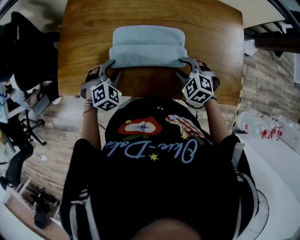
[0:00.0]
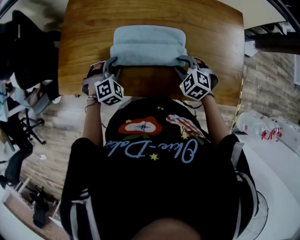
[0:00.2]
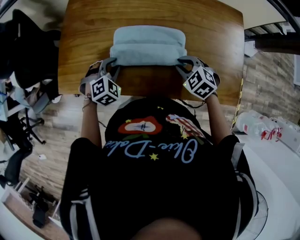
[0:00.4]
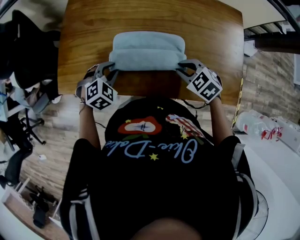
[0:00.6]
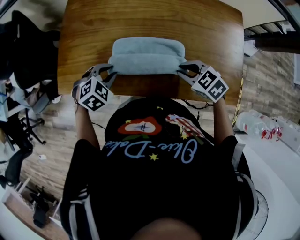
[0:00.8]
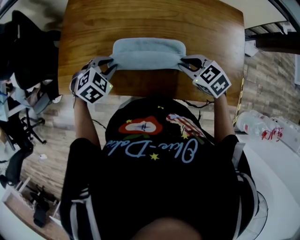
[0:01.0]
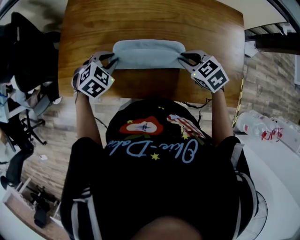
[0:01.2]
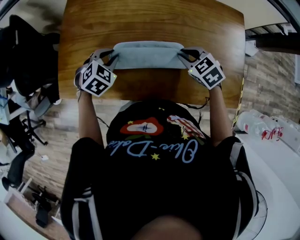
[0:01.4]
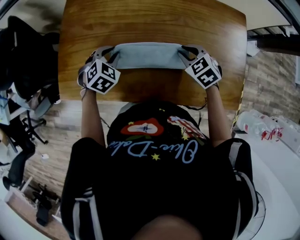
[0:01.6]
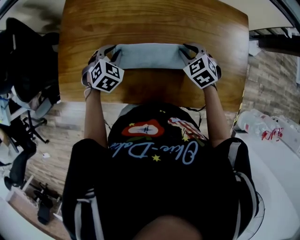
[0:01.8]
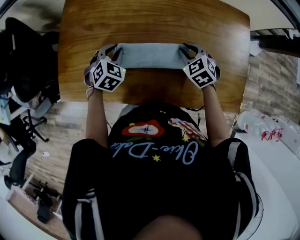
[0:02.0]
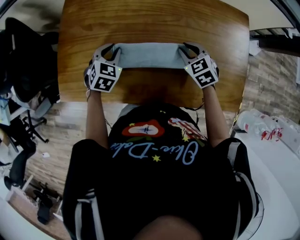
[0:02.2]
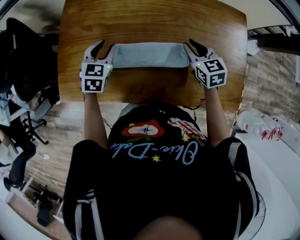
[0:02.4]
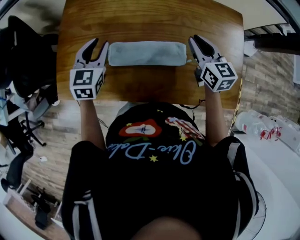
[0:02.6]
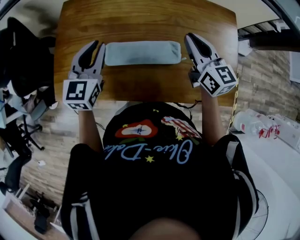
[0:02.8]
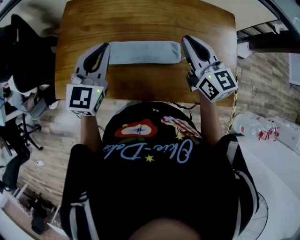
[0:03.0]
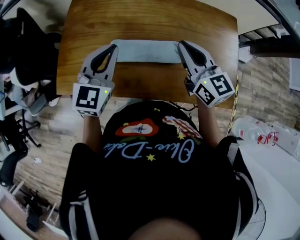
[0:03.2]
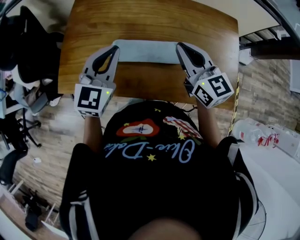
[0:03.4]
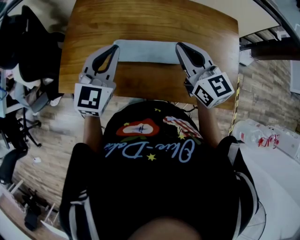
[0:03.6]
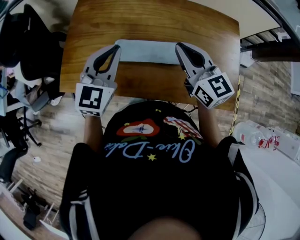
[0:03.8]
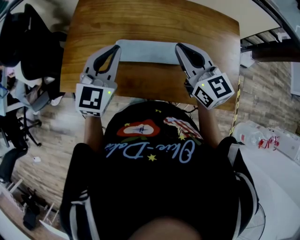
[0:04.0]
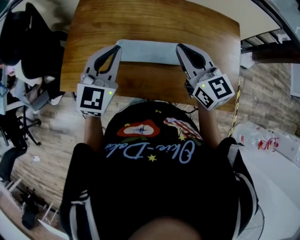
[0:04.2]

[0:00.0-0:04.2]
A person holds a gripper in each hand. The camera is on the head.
0.0 to 1.4 s: The grippers both shift forward by roughly 5 cm. The right gripper turns by about 20 degrees, and closes.
1.4 to 2.8 s: Both grippers travel together upward, roughly 15 cm. The right gripper points its fingers about 40 degrees further upward. The left gripper tips its fingers upward by about 40 degrees.
2.8 to 4.2 s: The right gripper is displaced to the left and backward by about 10 cm. The left gripper travels backward by approximately 5 cm.

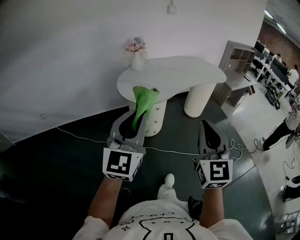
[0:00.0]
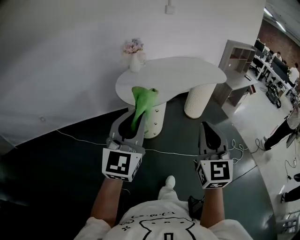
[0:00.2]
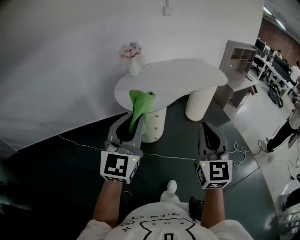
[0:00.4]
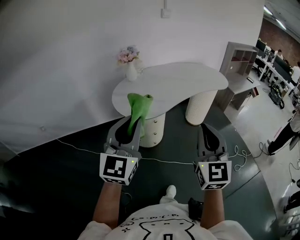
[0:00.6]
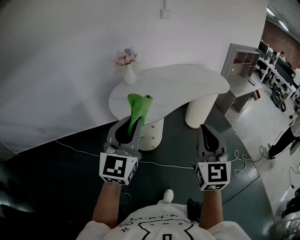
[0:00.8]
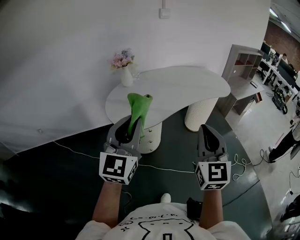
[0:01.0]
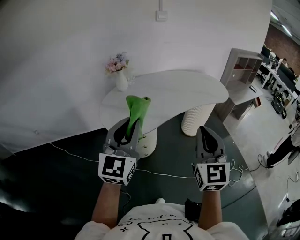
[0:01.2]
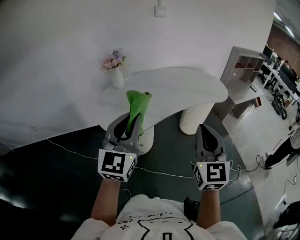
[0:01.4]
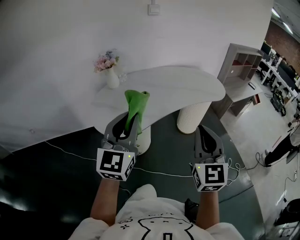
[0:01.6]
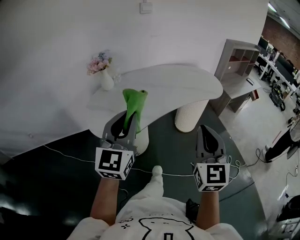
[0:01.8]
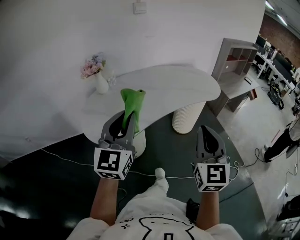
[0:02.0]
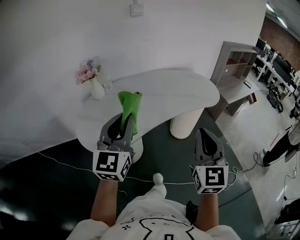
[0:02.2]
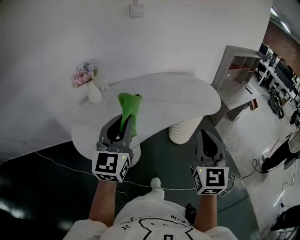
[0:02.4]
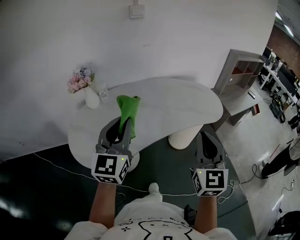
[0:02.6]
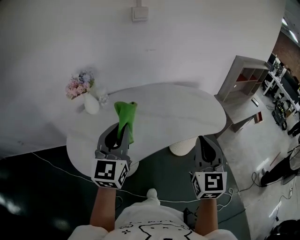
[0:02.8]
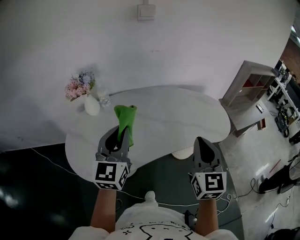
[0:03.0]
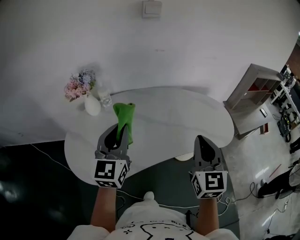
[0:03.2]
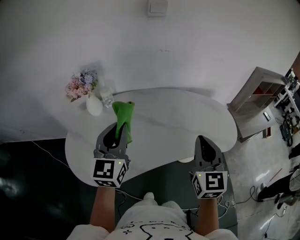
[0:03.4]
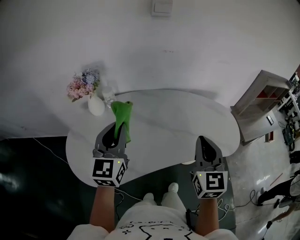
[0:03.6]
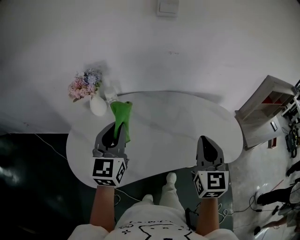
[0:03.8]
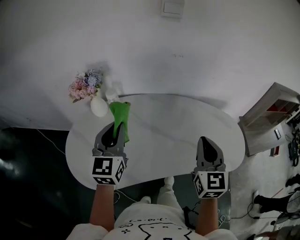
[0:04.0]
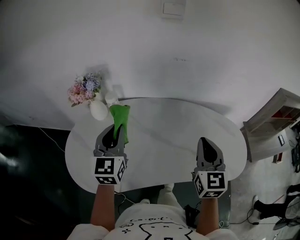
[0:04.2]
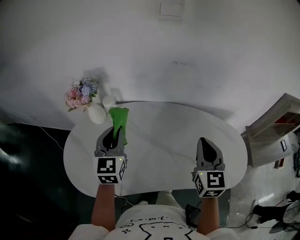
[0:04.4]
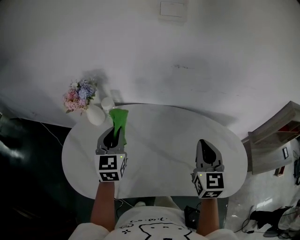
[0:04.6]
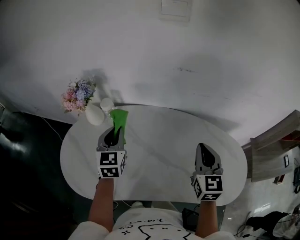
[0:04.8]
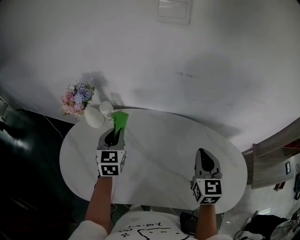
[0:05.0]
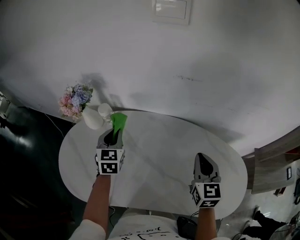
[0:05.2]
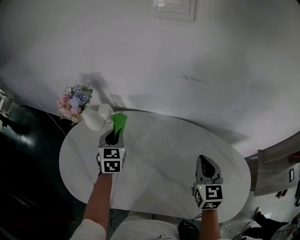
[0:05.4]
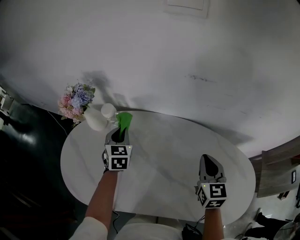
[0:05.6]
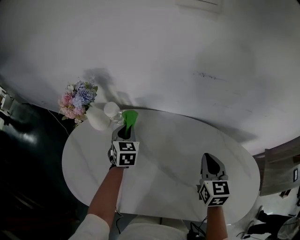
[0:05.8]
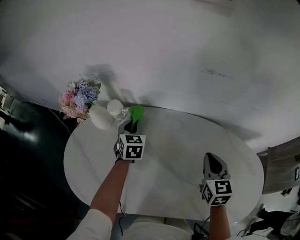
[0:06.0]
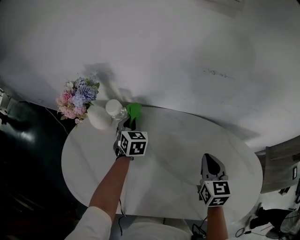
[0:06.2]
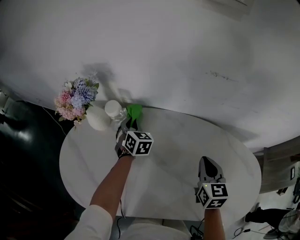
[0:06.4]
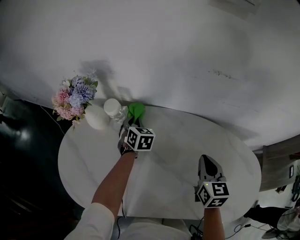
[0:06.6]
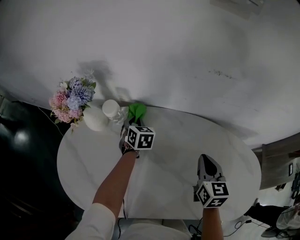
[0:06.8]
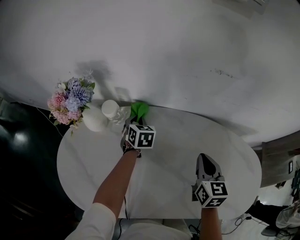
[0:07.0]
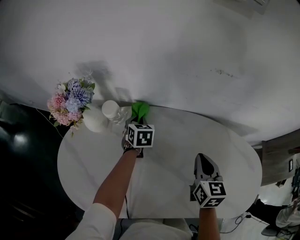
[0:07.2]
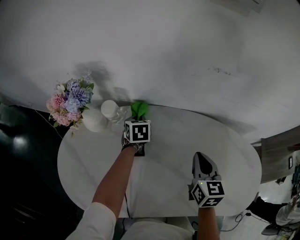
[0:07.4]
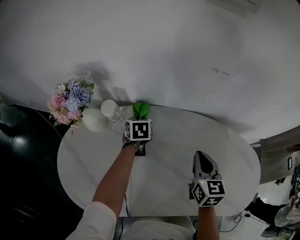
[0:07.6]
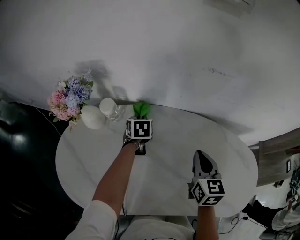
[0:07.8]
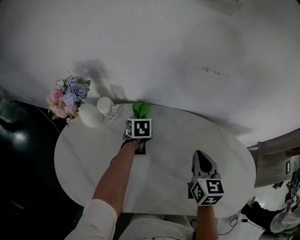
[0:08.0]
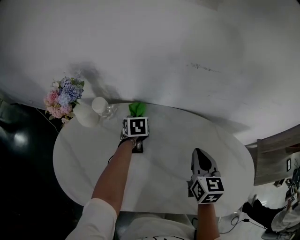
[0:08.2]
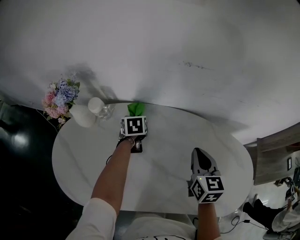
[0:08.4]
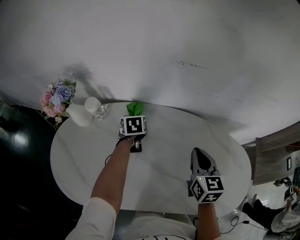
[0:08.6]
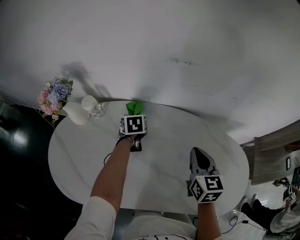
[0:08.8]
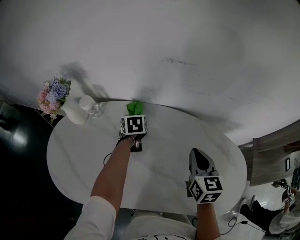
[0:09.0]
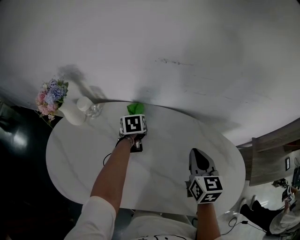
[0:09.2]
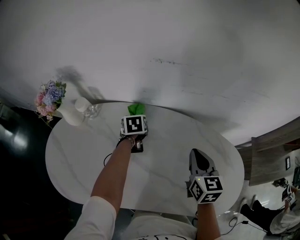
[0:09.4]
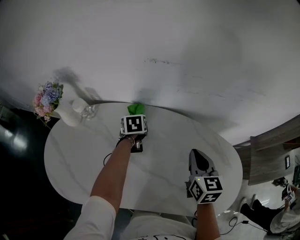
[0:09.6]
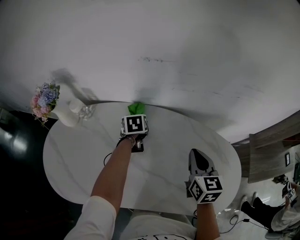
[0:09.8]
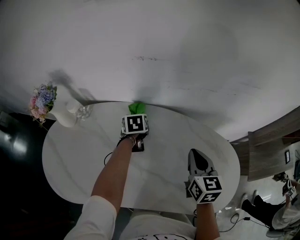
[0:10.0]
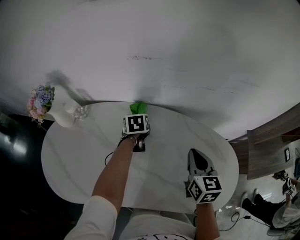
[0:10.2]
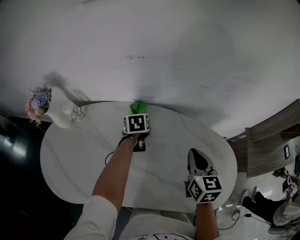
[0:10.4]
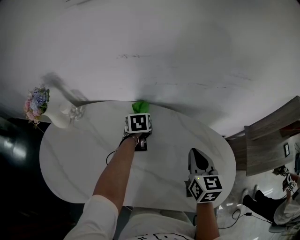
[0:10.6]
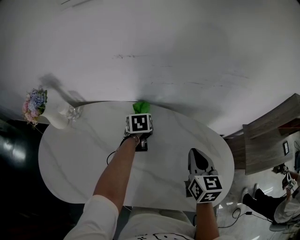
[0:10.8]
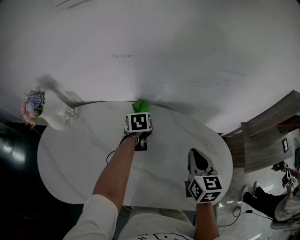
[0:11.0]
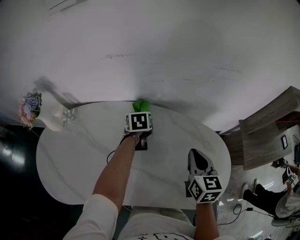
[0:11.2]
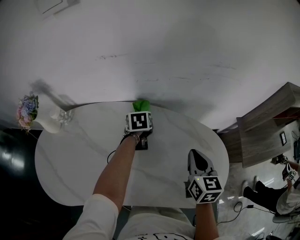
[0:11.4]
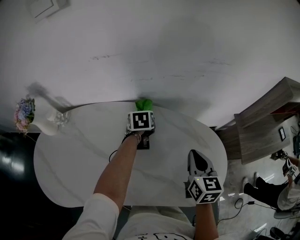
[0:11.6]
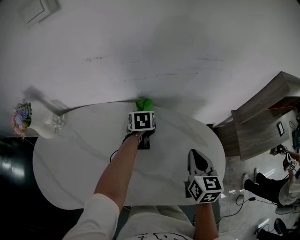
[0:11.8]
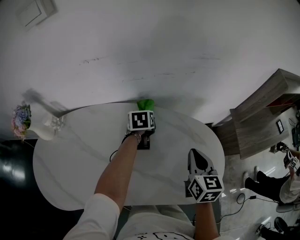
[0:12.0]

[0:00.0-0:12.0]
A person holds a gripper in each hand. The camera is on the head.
0.0 to 1.6 s: Both grippers travel together forward and to the right, approximately 35 cm.
1.6 to 3.0 s: Both grippers travel together forward, approximately 30 cm.
3.0 to 4.4 s: The two grippers go about 25 cm forward. The left gripper changes its angle by roughly 30 degrees.
4.4 to 6.0 s: The right gripper is displaced downward and forward by approximately 20 cm, and changes its angle by roughly 20 degrees. The left gripper shifts about 30 cm forward and downward, and changes its angle by approximately 30 degrees.
6.0 to 7.6 s: The left gripper shifts about 5 cm downward, and changes its angle by approximately 20 degrees.
7.6 to 9.0 s: Both grippers travel together to the right, some 10 cm.
9.0 to 10.4 s: The grippers both shift to the right by some 10 cm.
10.4 to 12.0 s: The left gripper is displaced to the right by some 15 cm. Meanwhile the right gripper is displaced to the right and backward by approximately 10 cm.

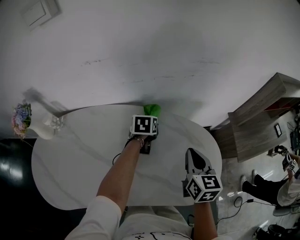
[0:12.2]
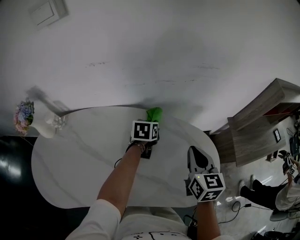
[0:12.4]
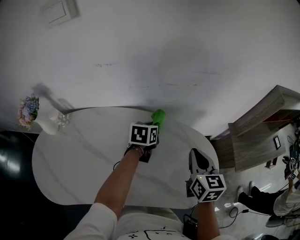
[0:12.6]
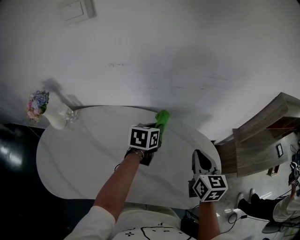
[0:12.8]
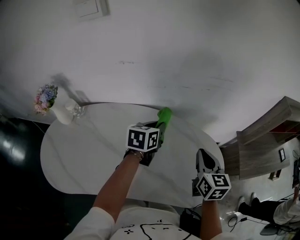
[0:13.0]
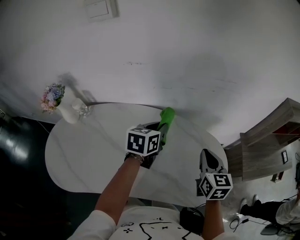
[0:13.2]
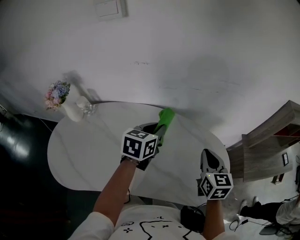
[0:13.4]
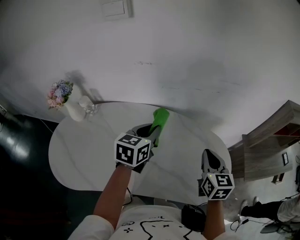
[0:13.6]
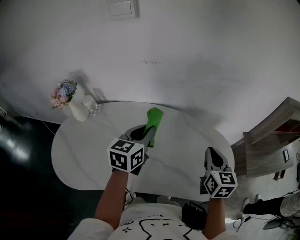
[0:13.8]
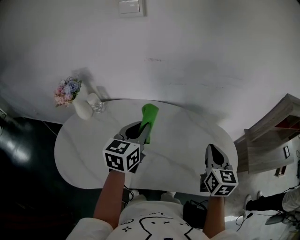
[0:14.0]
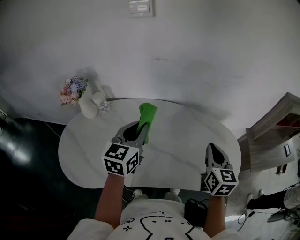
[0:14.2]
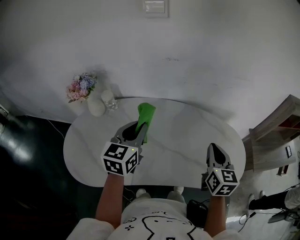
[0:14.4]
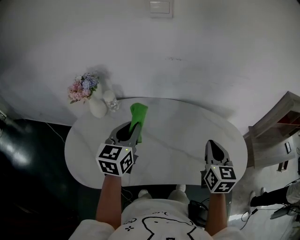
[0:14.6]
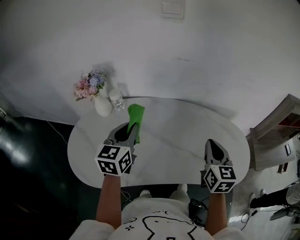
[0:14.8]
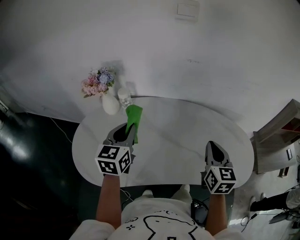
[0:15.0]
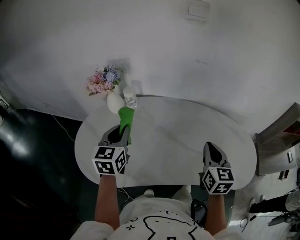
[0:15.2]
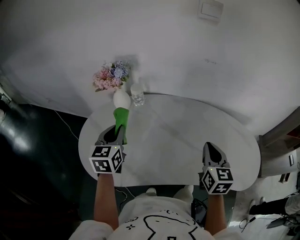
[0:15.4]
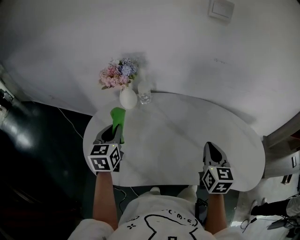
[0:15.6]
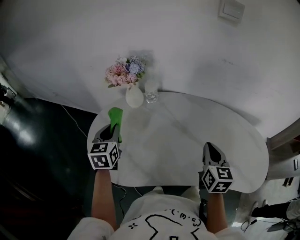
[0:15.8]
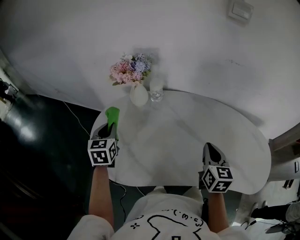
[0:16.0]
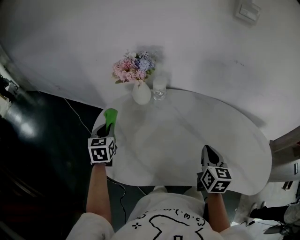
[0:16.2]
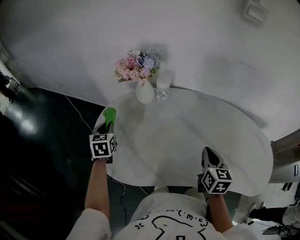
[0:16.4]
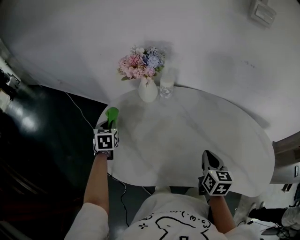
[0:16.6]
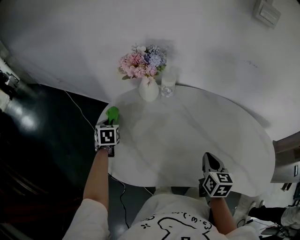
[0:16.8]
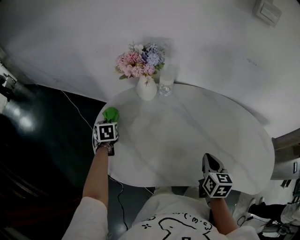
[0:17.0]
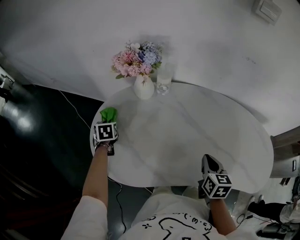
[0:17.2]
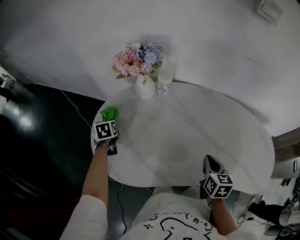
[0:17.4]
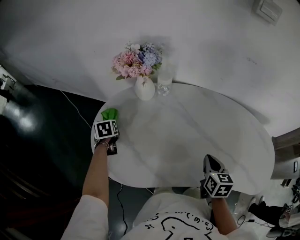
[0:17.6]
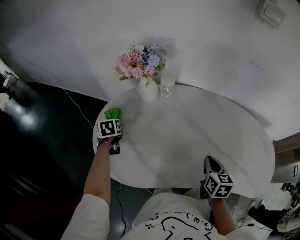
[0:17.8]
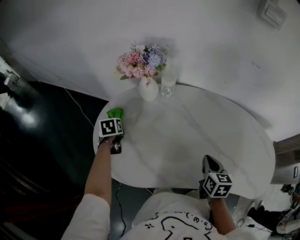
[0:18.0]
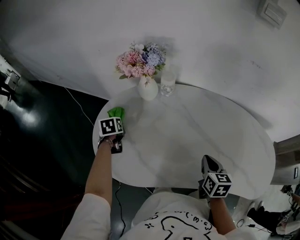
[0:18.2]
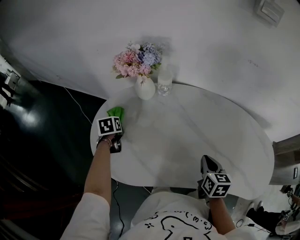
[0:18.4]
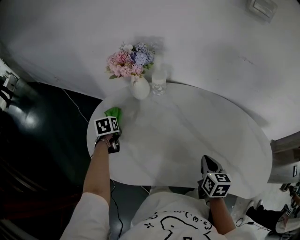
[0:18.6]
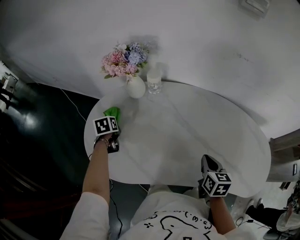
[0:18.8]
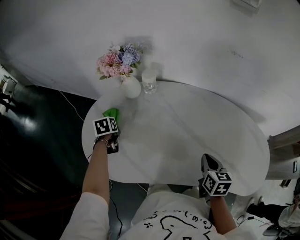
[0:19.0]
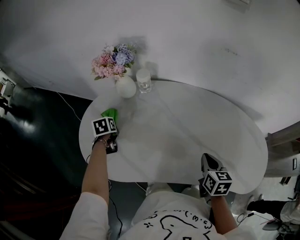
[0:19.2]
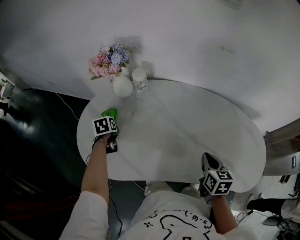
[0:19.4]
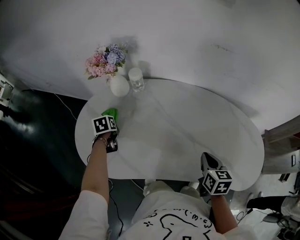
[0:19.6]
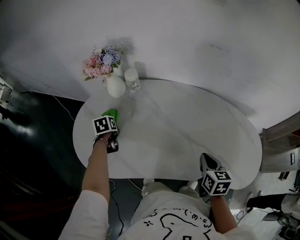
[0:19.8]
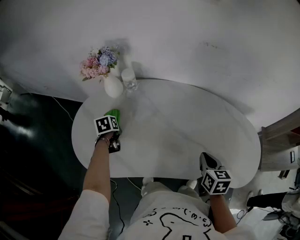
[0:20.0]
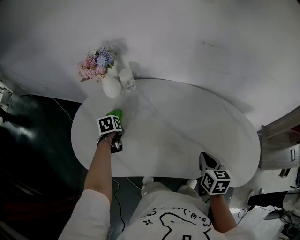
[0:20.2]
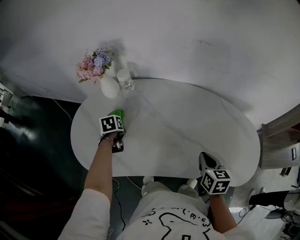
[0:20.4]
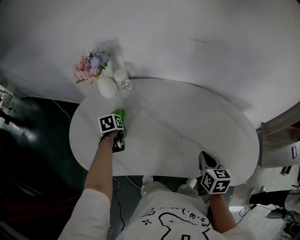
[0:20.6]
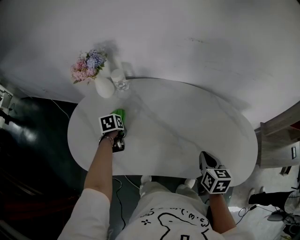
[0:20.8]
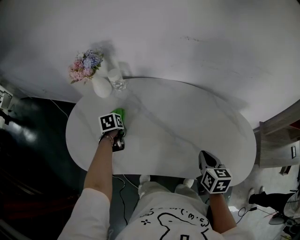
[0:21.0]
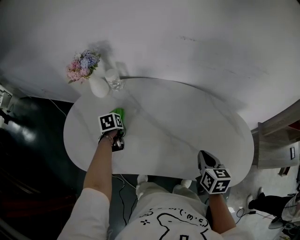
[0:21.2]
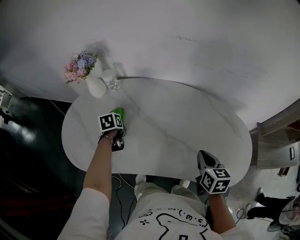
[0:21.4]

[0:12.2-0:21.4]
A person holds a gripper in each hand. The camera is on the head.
12.2 to 13.8 s: The right gripper moves upward, approximately 5 cm, while the left gripper travels upward, backward and to the left by about 30 cm, and swivels approximately 30 degrees.
13.8 to 15.2 s: The grippers both shift to the left by about 30 cm. The left gripper swivels about 20 degrees.
15.2 to 16.8 s: The right gripper travels to the left and downward by some 20 cm, and swivels some 20 degrees, while the left gripper goes roughly 35 cm to the left and downward, and changes its angle by approximately 40 degrees.
16.8 to 18.4 s: The left gripper moves roughly 5 cm, and turns by some 20 degrees.
18.4 to 19.8 s: The right gripper heads to the right and backward, covering some 15 cm. The left gripper travels to the right by about 10 cm.
19.8 to 21.4 s: The right gripper moves to the right, approximately 10 cm. Meanwhile the left gripper heads to the right, covering about 15 cm.
